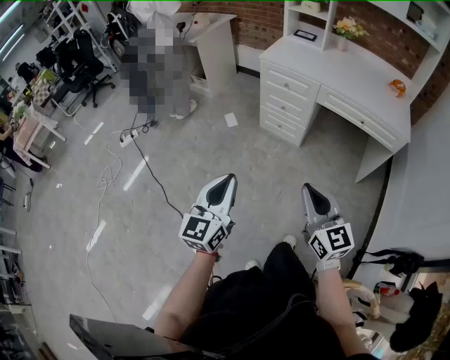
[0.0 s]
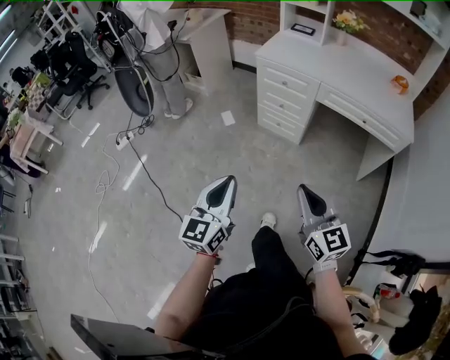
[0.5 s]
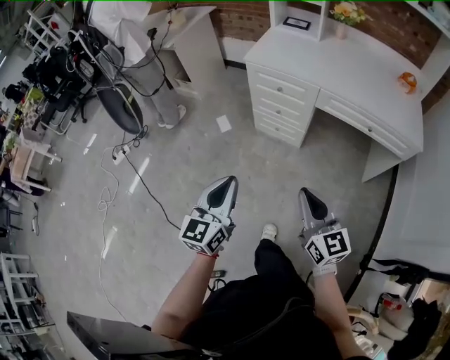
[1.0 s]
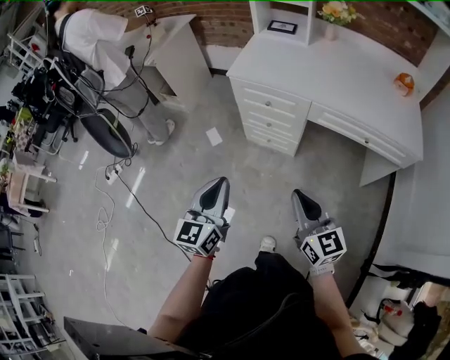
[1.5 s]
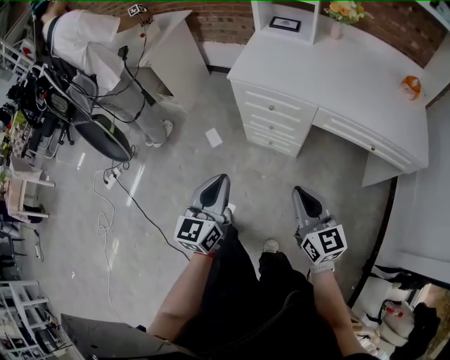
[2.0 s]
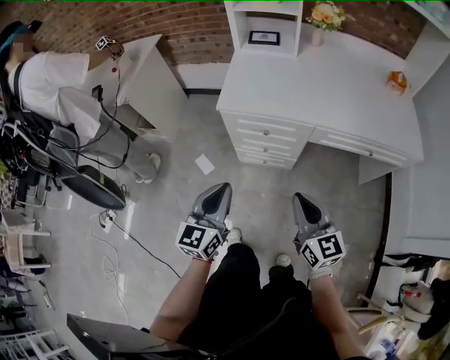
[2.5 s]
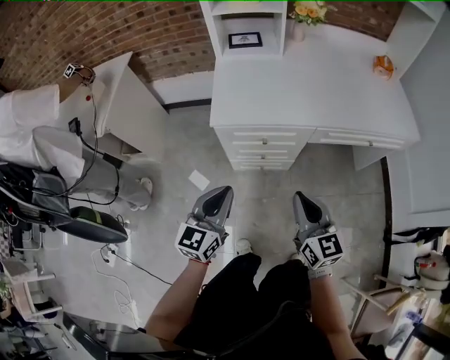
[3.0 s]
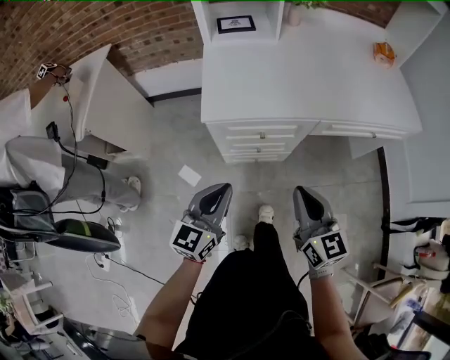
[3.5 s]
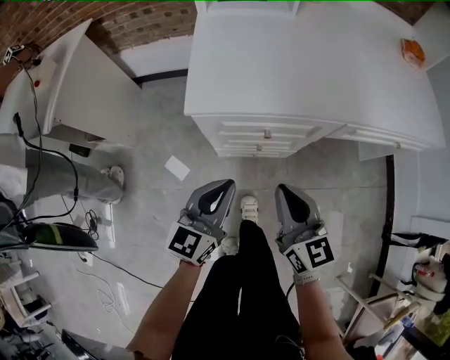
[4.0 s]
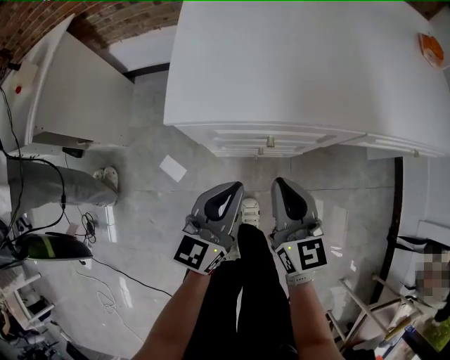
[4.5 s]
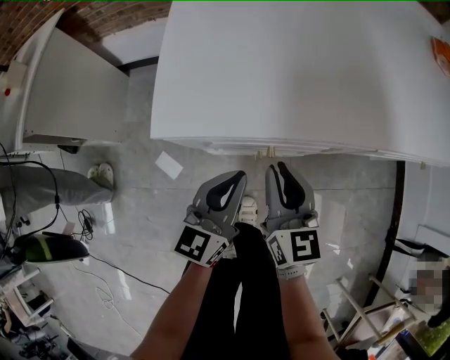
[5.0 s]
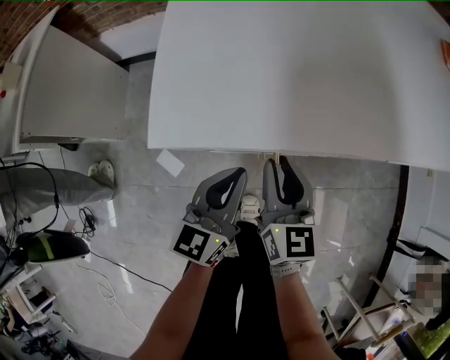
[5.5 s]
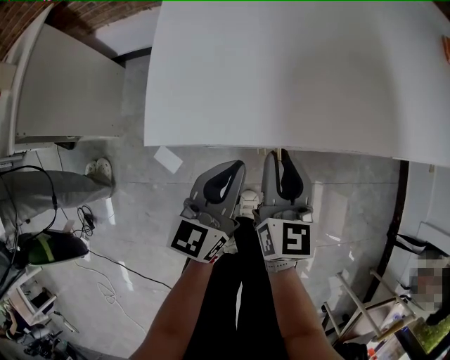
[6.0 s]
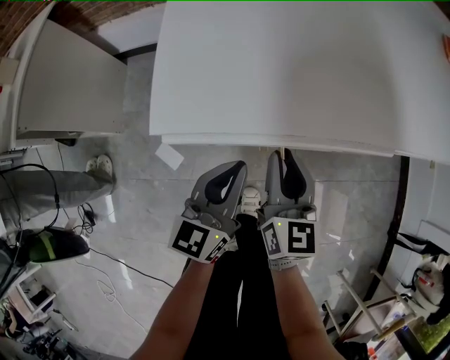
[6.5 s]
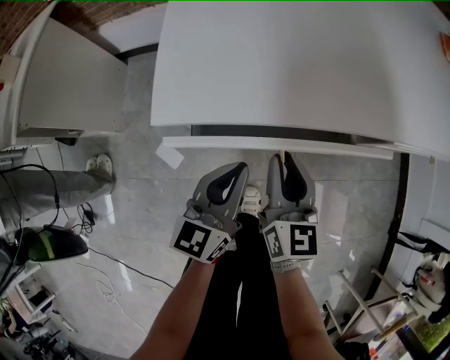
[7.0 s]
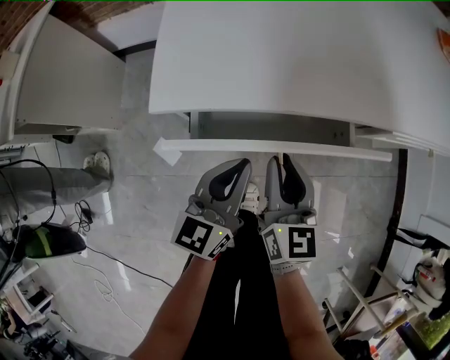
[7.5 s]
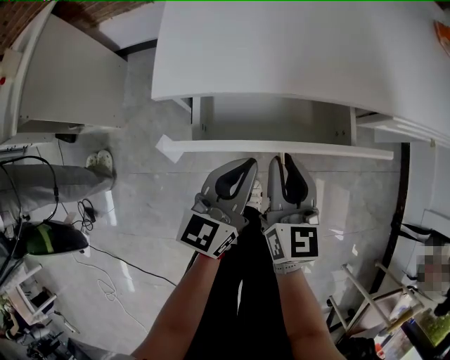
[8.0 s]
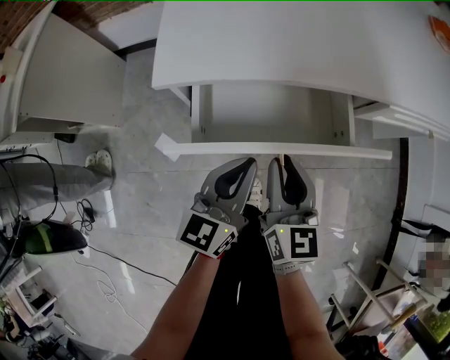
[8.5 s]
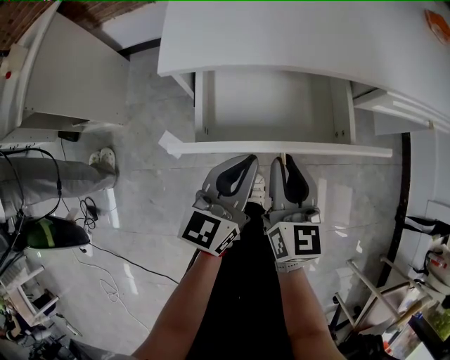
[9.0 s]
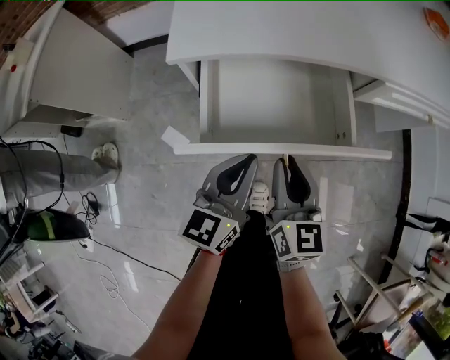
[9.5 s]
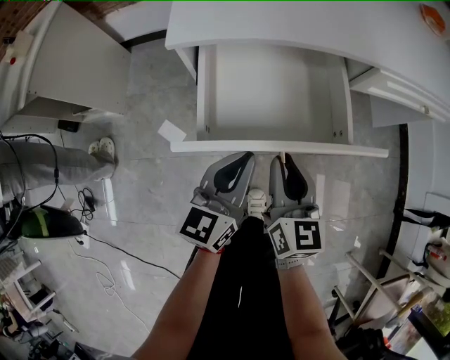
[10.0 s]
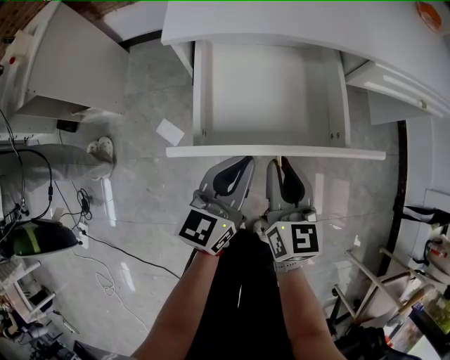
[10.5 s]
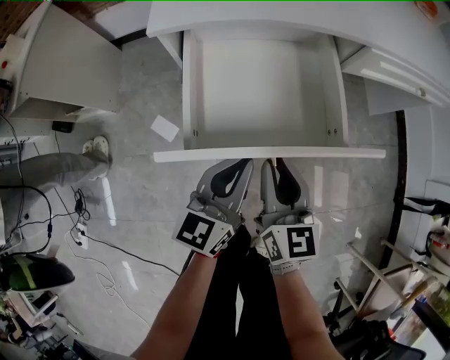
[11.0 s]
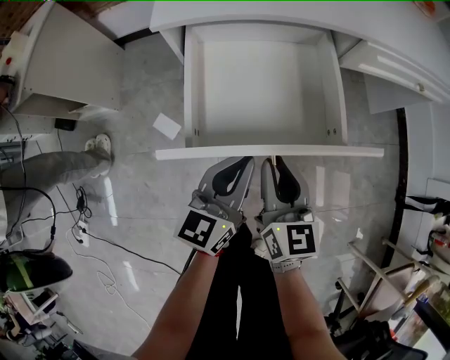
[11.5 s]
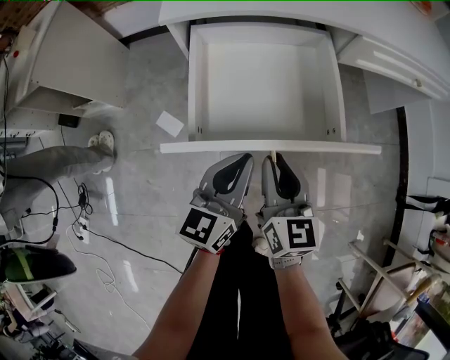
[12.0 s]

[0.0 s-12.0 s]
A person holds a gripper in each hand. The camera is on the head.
0.0 to 2.0 s: The grippers both shift forward by some 35 cm.
2.0 to 4.0 s: The right gripper moves roughly 30 cm, and swivels some 20 degrees, while the left gripper shifts by some 30 cm, and changes its angle by some 30 degrees.
4.0 to 6.0 s: Both grippers travel together forward and downward, some 15 cm.
6.0 to 8.0 s: Both grippers move backward, some 5 cm.
8.0 to 10.0 s: The two grippers go approximately 10 cm backward.
10.0 to 12.0 s: The two grippers go approximately 5 cm backward.

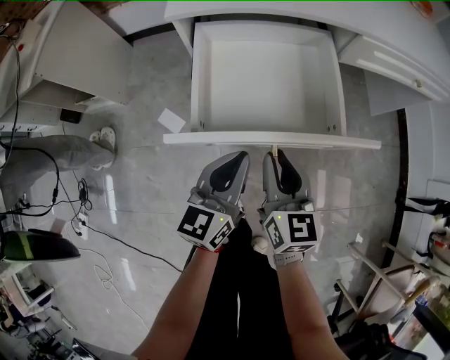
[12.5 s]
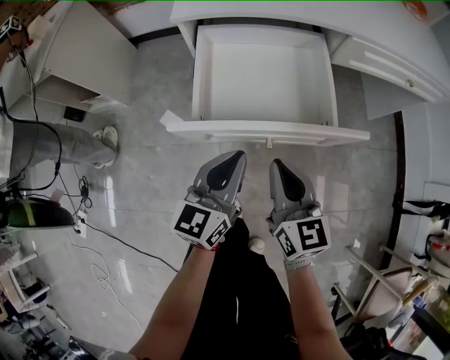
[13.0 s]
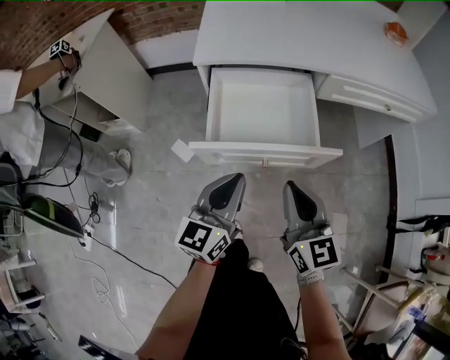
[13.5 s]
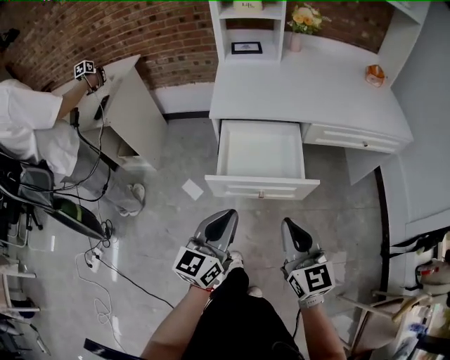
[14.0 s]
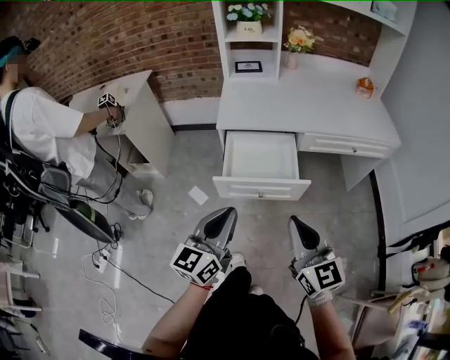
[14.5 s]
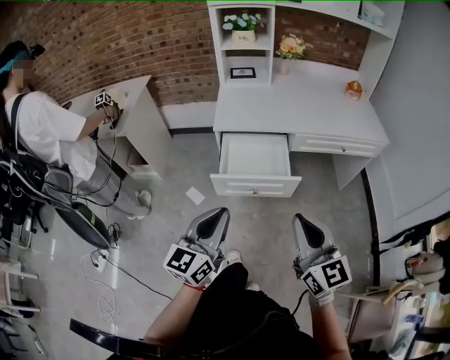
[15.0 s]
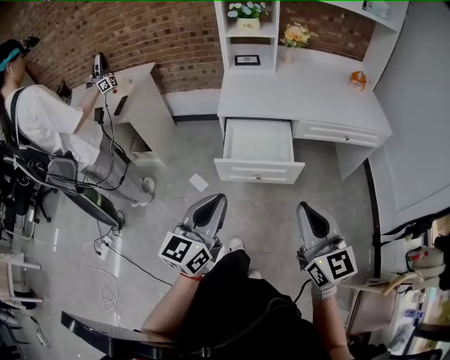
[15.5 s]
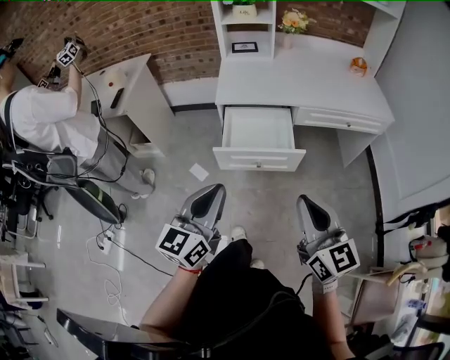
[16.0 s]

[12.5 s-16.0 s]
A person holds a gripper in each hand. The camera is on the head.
12.5 to 14.5 s: The grippers both shift upward and backward by some 35 cm. The right gripper swivels some 30 degrees.
14.5 to 16.0 s: The right gripper shifts approximately 10 cm backward and upward, while the left gripper goes approximately 10 cm upward and backward.

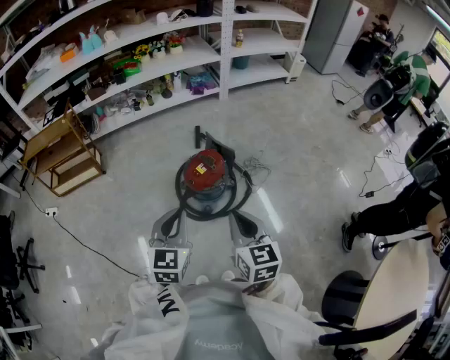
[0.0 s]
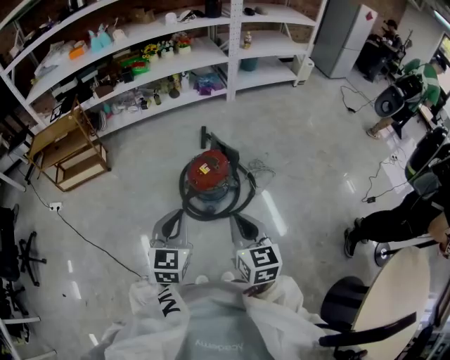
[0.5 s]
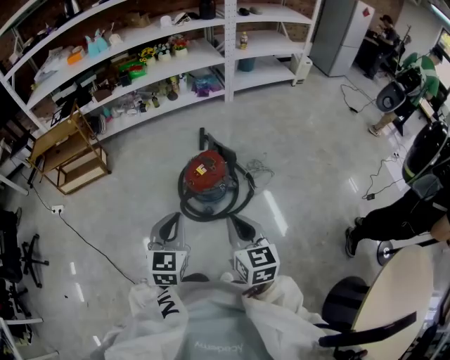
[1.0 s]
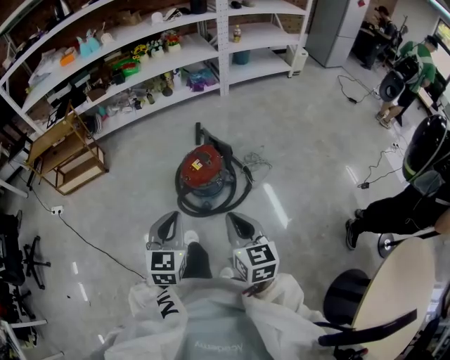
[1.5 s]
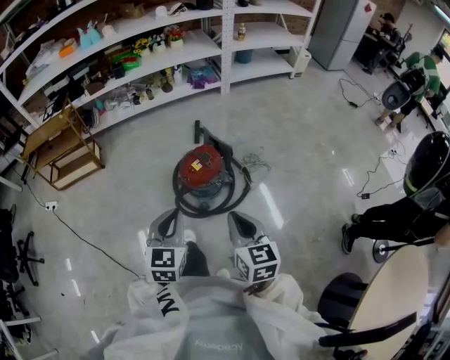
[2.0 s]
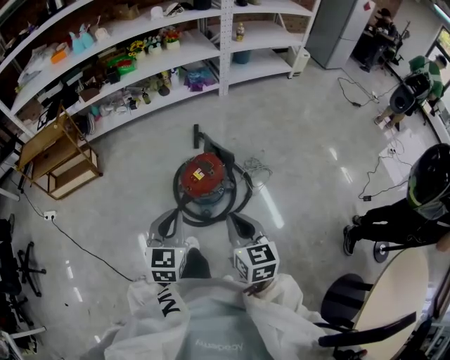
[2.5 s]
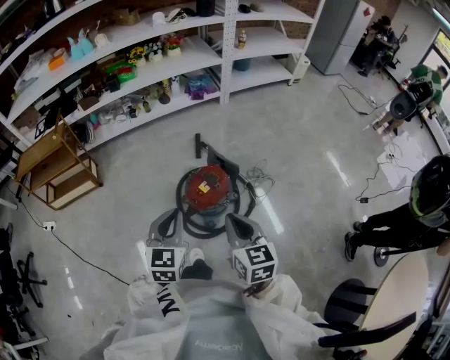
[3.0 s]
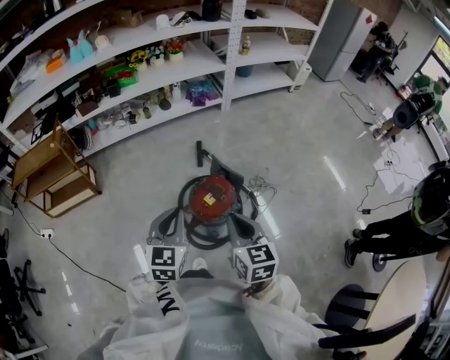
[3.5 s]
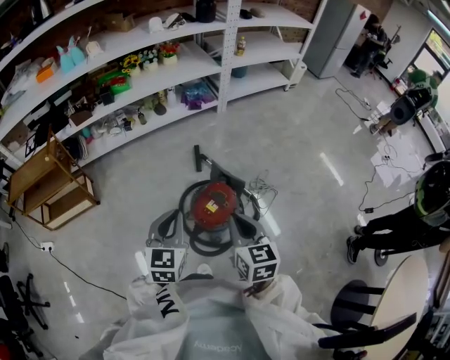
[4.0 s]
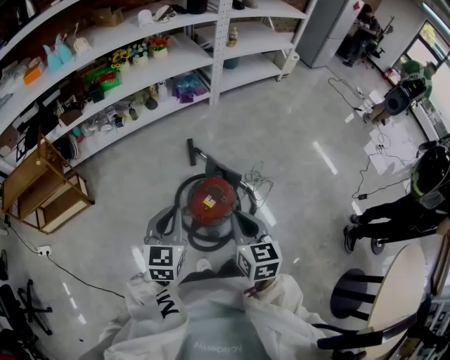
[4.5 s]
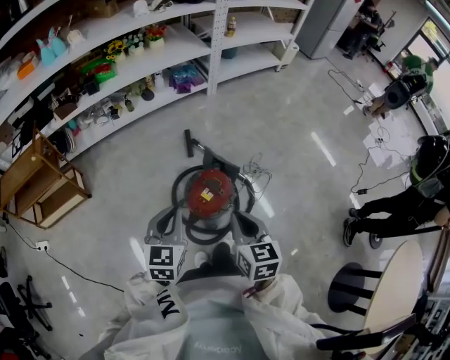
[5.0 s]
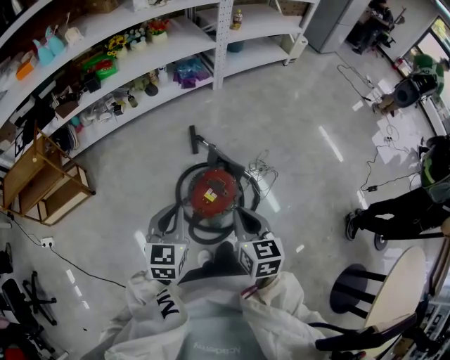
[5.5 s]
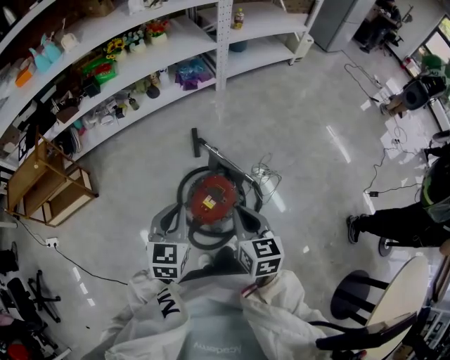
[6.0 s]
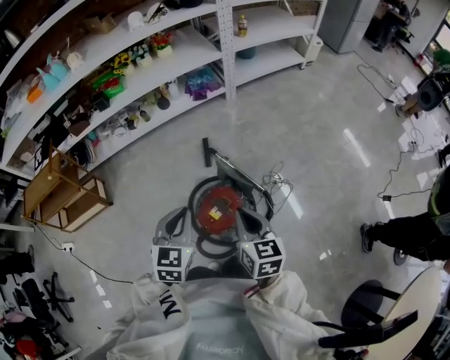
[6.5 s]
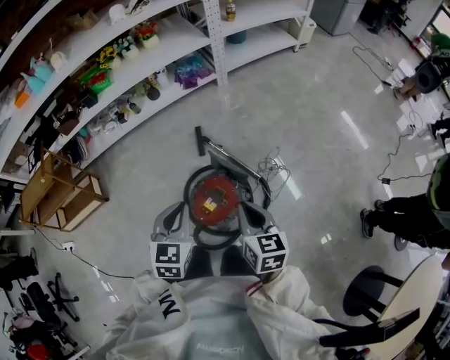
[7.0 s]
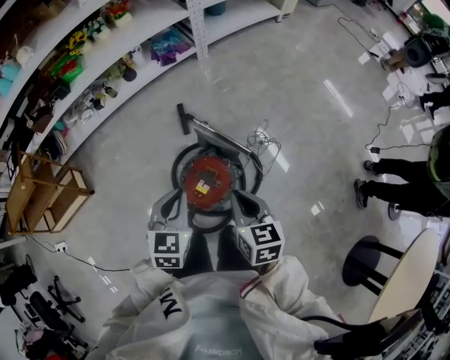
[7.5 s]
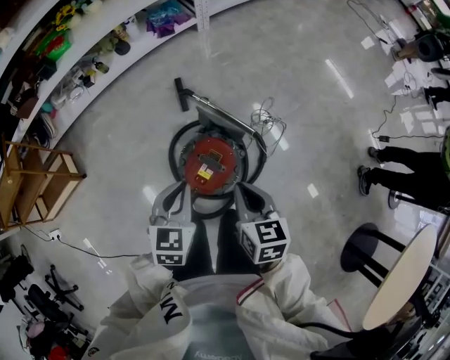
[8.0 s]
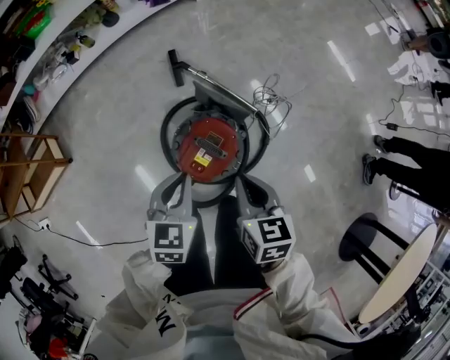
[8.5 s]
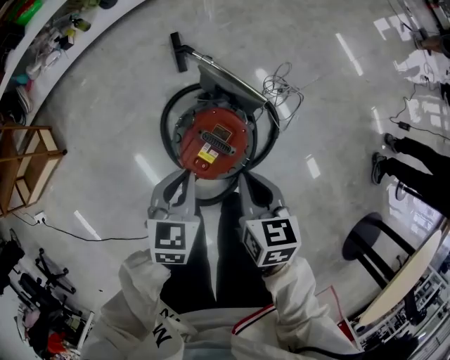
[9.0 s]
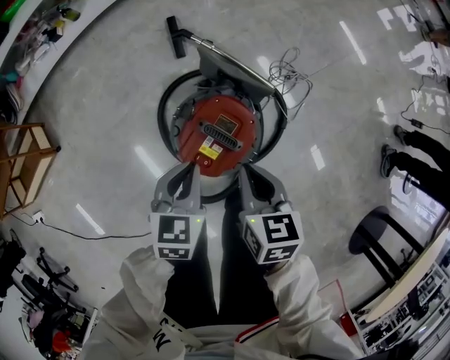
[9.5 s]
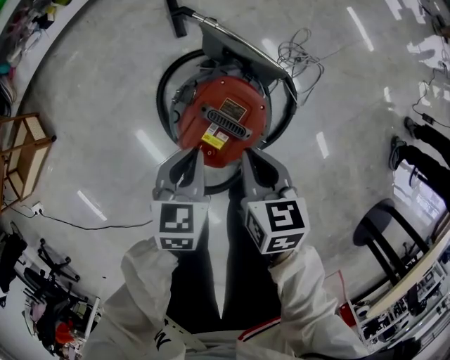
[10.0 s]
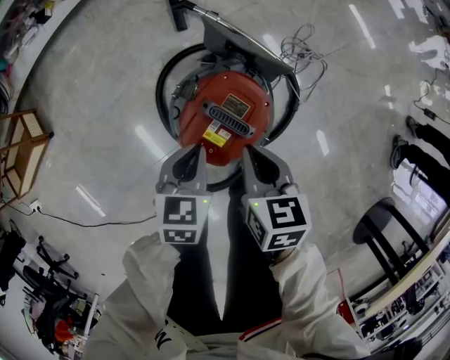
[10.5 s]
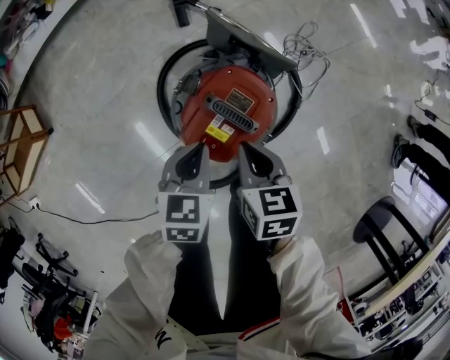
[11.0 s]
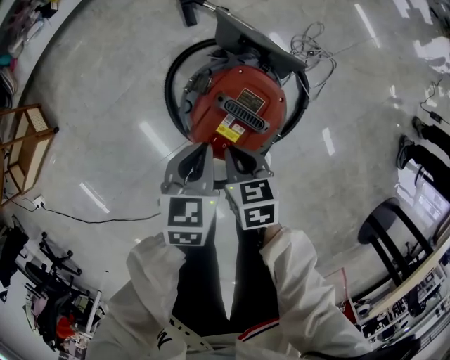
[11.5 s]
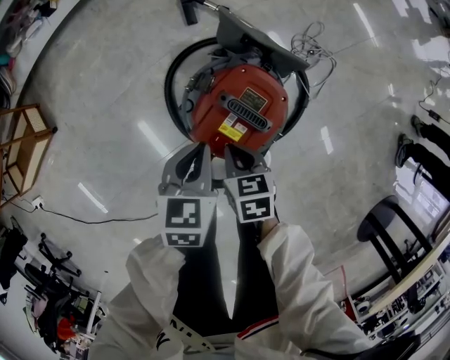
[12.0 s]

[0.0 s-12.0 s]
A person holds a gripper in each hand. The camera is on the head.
0.0 to 2.0 s: The grippers move only a little.
2.0 to 4.0 s: Both grippers move forward and to the left, some 25 cm.
4.0 to 6.0 s: Both grippers move forward, roughly 5 cm.
6.0 to 8.0 s: The two grippers go roughly 10 cm downward.
8.0 to 10.0 s: Both grippers travel together downward, some 20 cm.
10.0 to 12.0 s: The right gripper travels downward and to the left by approximately 15 cm.
